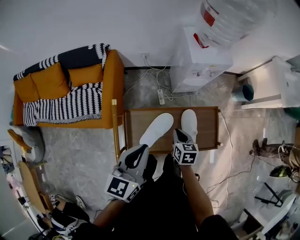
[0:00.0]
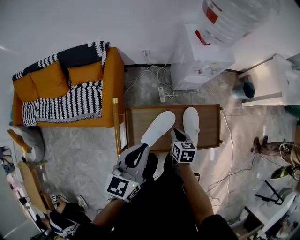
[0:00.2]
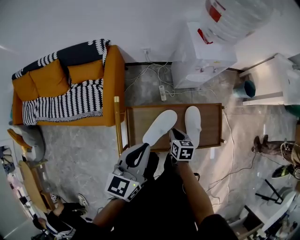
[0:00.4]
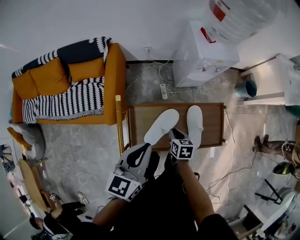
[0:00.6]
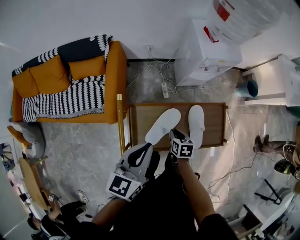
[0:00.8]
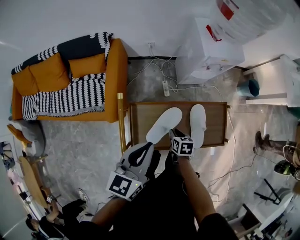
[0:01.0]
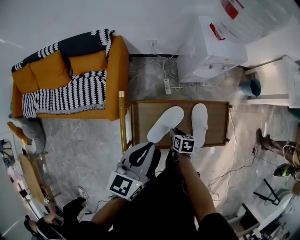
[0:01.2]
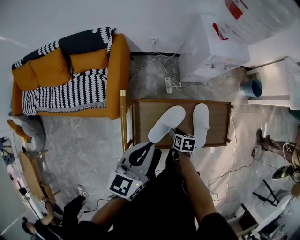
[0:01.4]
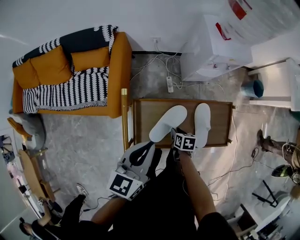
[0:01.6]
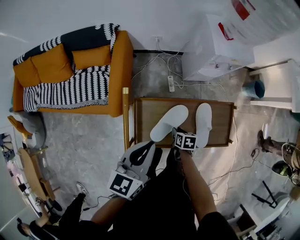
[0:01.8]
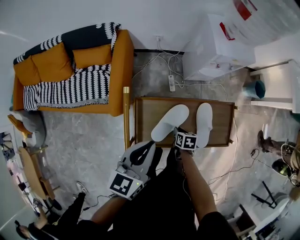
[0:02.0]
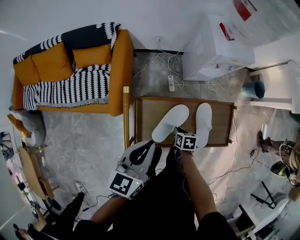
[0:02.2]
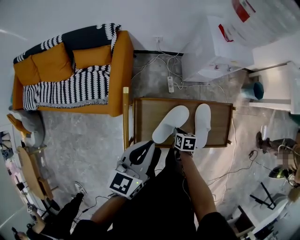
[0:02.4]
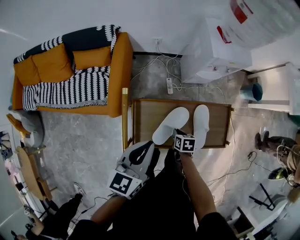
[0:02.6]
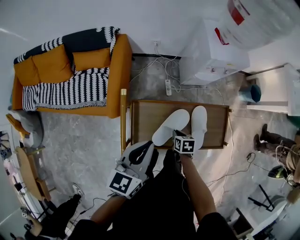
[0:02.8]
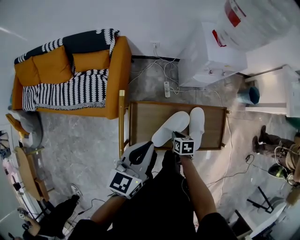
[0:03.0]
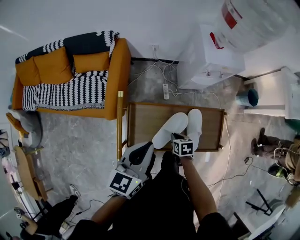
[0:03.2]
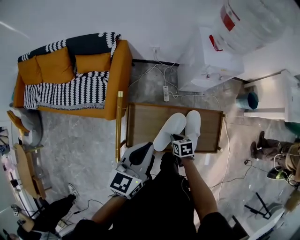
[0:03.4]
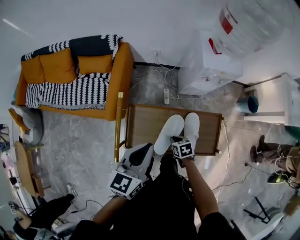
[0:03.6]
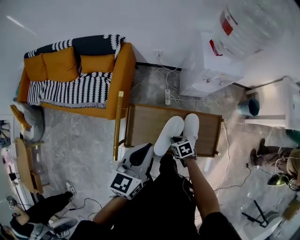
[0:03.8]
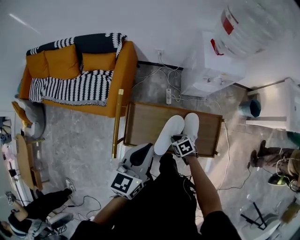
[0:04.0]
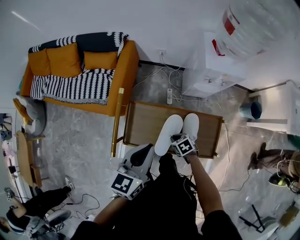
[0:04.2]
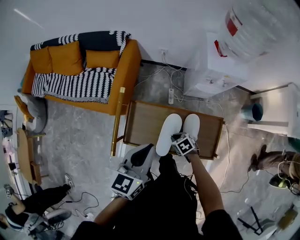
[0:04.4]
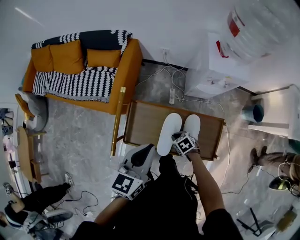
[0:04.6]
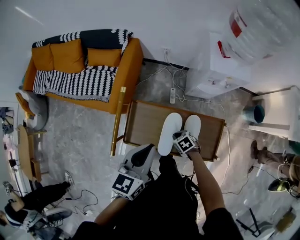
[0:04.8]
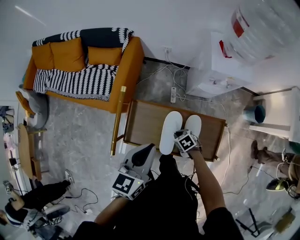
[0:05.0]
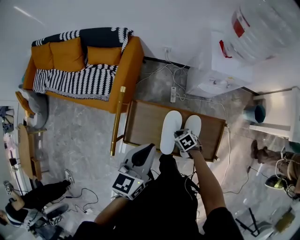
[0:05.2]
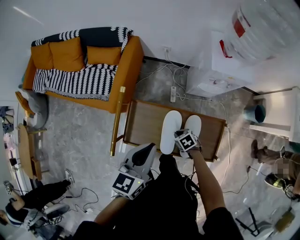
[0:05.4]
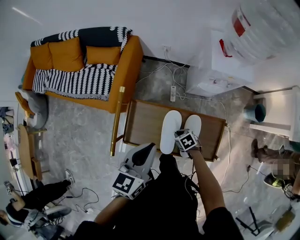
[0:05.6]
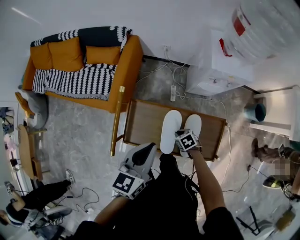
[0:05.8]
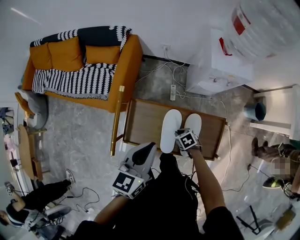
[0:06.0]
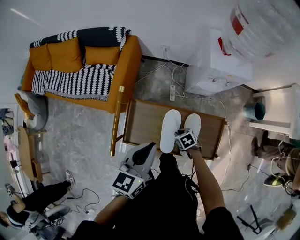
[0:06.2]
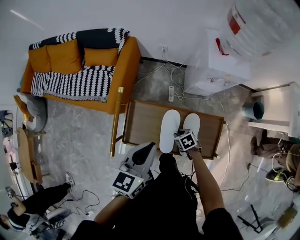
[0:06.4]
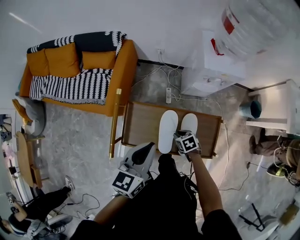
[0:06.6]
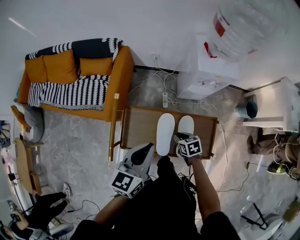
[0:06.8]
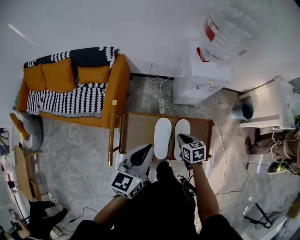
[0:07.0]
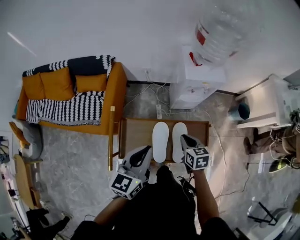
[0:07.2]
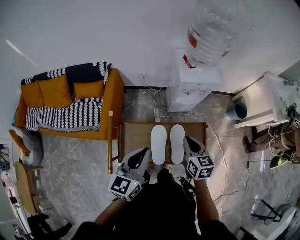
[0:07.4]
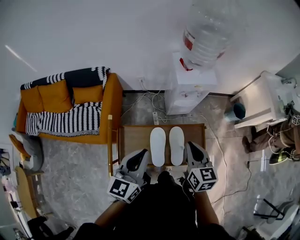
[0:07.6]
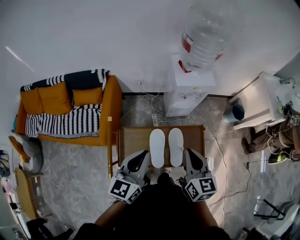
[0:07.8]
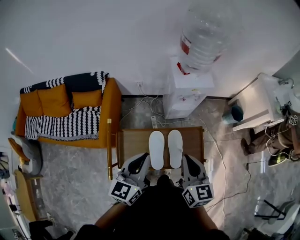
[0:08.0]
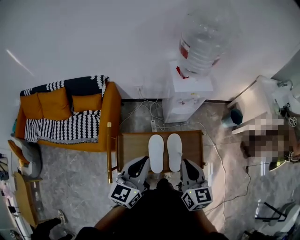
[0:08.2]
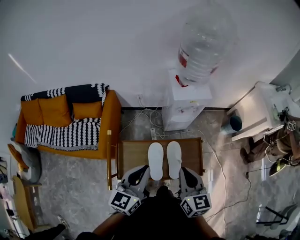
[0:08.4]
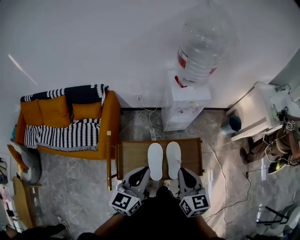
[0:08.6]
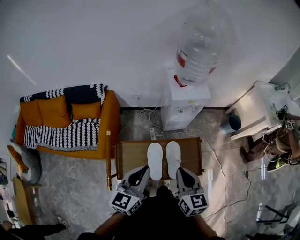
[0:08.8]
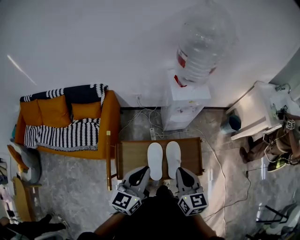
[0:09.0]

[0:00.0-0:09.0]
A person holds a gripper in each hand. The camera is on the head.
0:00.0 to 0:01.6: The right gripper is displaced downward by about 15 cm, swivels some 20 degrees, and opens its fingers, while the left gripper ends up some 5 cm from where it was.
0:01.6 to 0:03.0: The grippers move only a little.
0:03.0 to 0:04.4: The right gripper changes its angle by approximately 40 degrees. Meanwhile the left gripper travels to the right by roughly 5 cm.
0:04.4 to 0:06.0: The grippers stay close to where they were, moving slightly.
0:06.0 to 0:07.6: The left gripper shifts approximately 10 cm upward; the right gripper heads upward, covering some 35 cm, and tips its fingers upward by roughly 40 degrees.
0:07.6 to 0:09.0: The right gripper moves backward, about 5 cm.

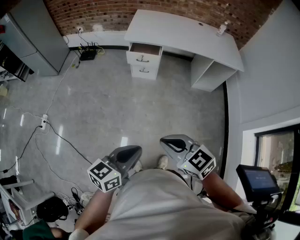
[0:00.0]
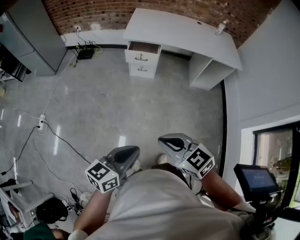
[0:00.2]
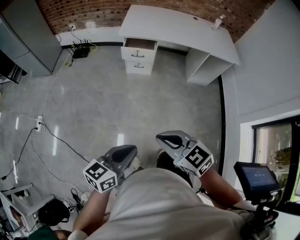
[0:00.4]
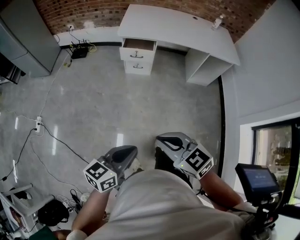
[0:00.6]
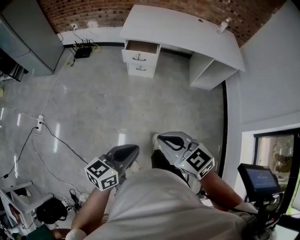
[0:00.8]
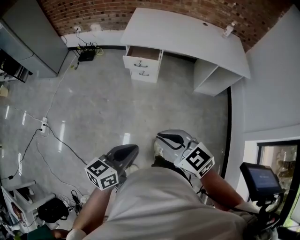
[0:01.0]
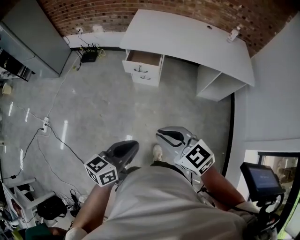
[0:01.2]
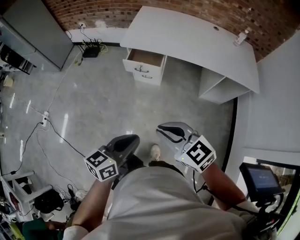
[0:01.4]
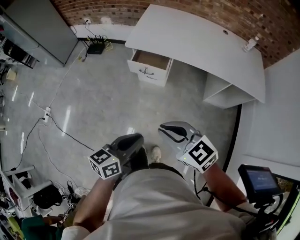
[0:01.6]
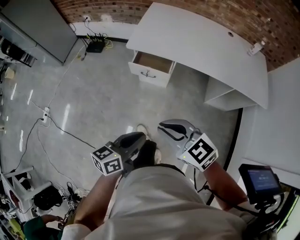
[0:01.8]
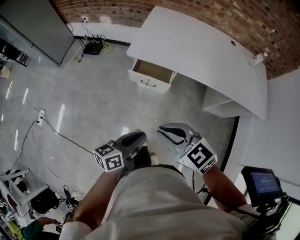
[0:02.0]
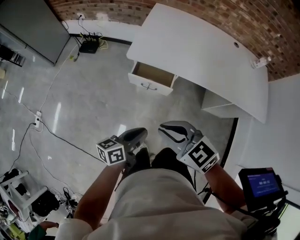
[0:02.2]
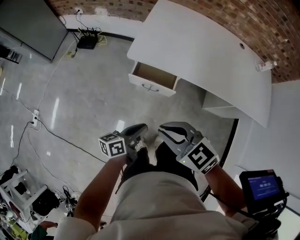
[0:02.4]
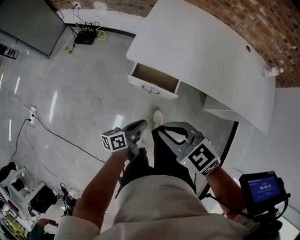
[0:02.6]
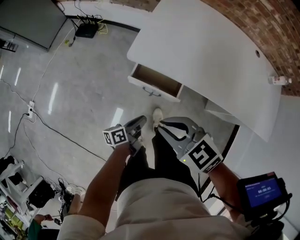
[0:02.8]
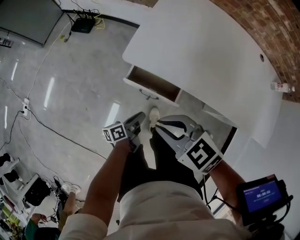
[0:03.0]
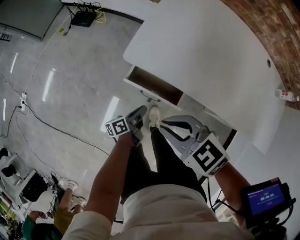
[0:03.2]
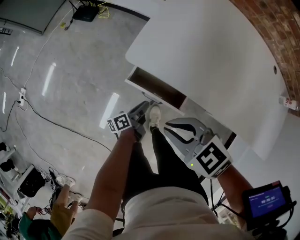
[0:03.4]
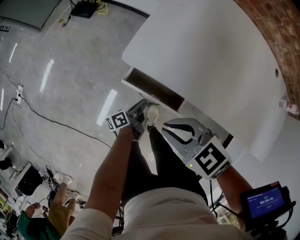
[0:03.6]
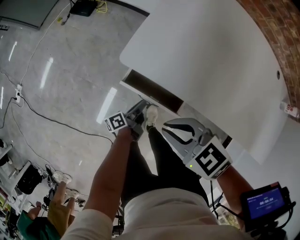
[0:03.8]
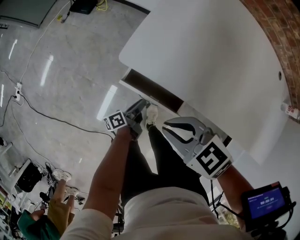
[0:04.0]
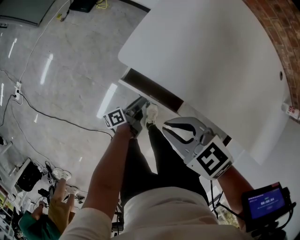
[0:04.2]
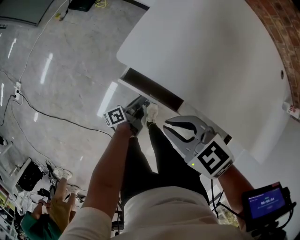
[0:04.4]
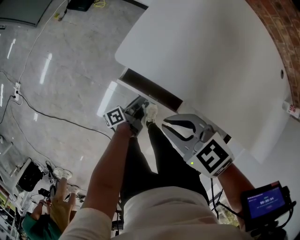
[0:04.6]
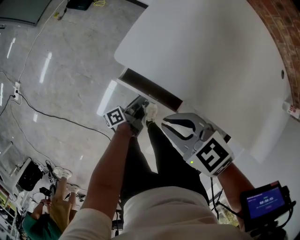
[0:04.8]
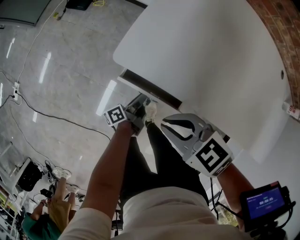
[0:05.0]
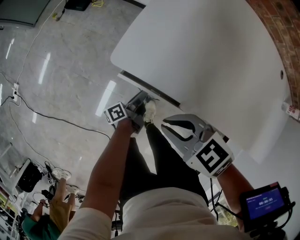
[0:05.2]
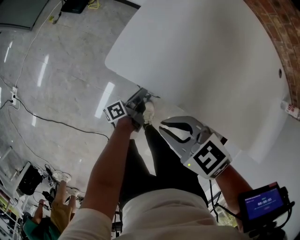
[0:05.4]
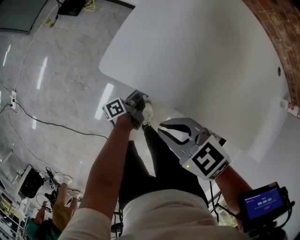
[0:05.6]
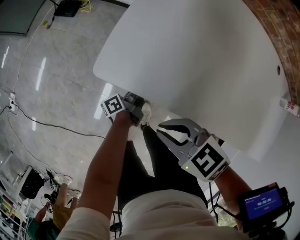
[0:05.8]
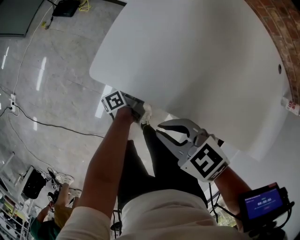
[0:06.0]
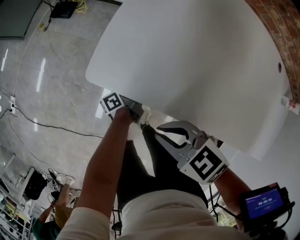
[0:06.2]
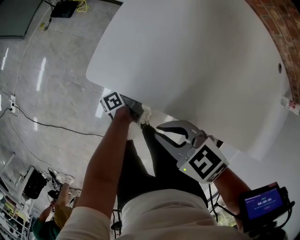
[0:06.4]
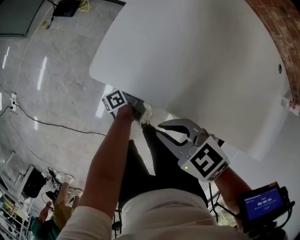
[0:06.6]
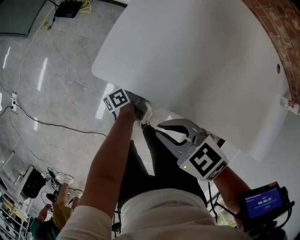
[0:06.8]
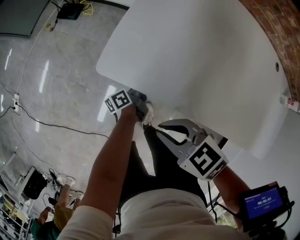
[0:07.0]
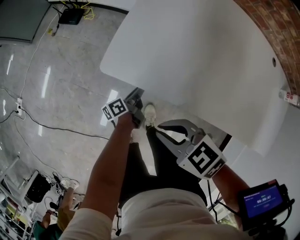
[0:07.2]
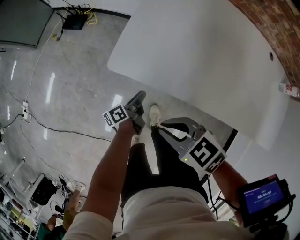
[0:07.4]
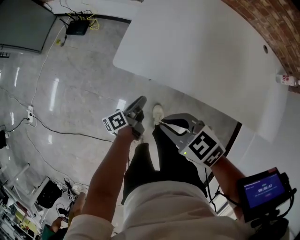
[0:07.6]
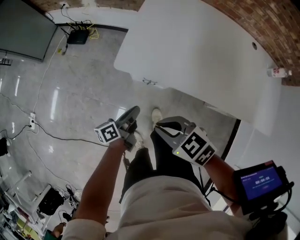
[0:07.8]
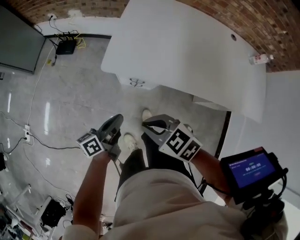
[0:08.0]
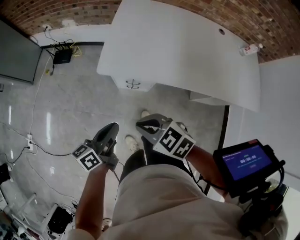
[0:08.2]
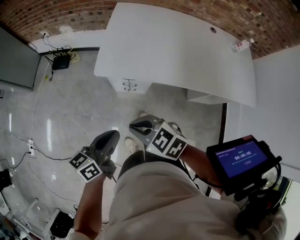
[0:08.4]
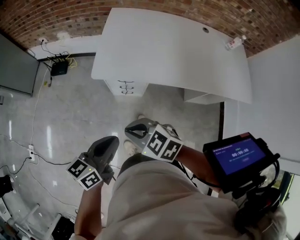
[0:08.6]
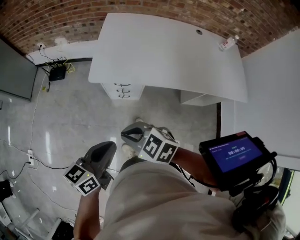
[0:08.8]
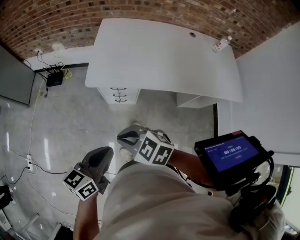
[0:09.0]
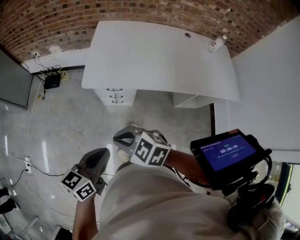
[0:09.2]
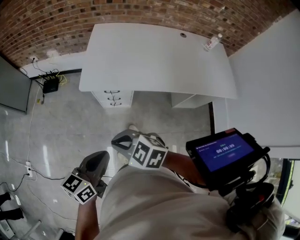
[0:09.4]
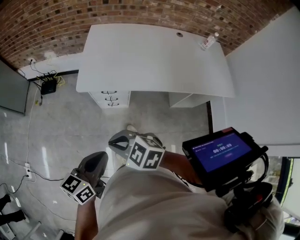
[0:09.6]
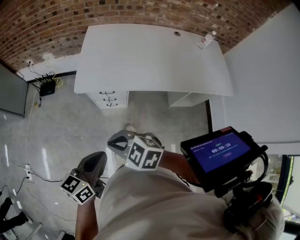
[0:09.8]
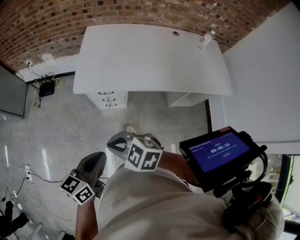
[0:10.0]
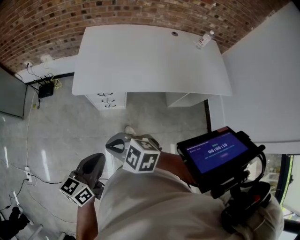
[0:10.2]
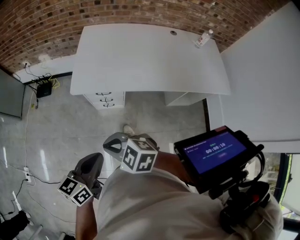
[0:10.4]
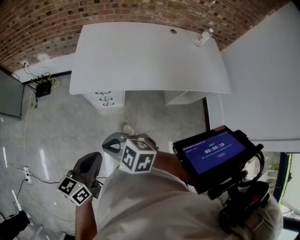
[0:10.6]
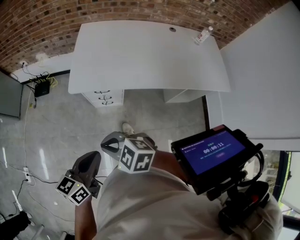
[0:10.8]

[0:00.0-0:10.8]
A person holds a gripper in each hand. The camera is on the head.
0:00.0 to 0:01.6: The two grippers go some 30 cm forward.
0:01.6 to 0:03.0: Both grippers are carried forward, some 50 cm. The left gripper is displaced downward by roughly 40 cm, and twists roughly 50 degrees counterclockwise, seen from behind. Meanwhile the right gripper is displaced downward by some 20 cm, and rotates approximately 20 degrees.
0:03.0 to 0:04.6: The grippers move only a little.
0:04.6 to 0:06.2: The left gripper shifts approximately 10 cm forward and to the right.
0:06.2 to 0:07.8: The left gripper is displaced upward, backward and to the left by some 25 cm, and turns by about 20 degrees. Meanwhile the right gripper moves backward and upward, some 10 cm.
0:07.8 to 0:09.2: The left gripper shifts approximately 30 cm upward and backward, and rotates around the line of its fingers by some 40 degrees, clockwise from behind; the right gripper heads backward and upward, covering roughly 15 cm.
0:09.2 to 0:10.8: The grippers stay close to where they were, moving slightly.

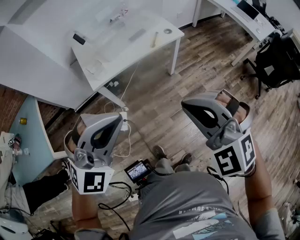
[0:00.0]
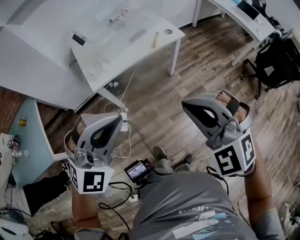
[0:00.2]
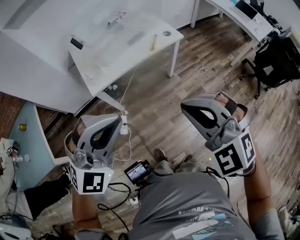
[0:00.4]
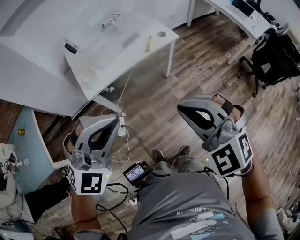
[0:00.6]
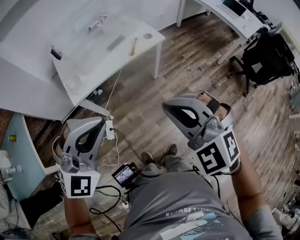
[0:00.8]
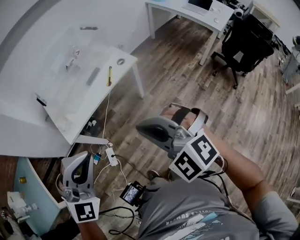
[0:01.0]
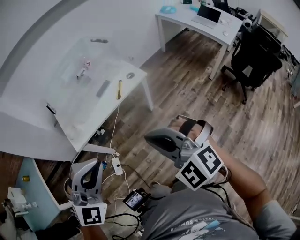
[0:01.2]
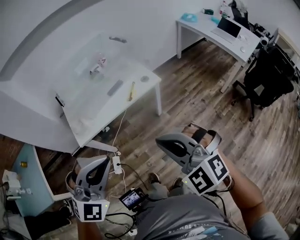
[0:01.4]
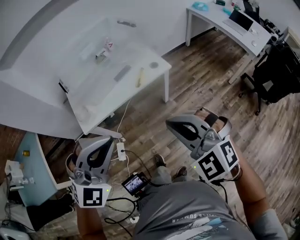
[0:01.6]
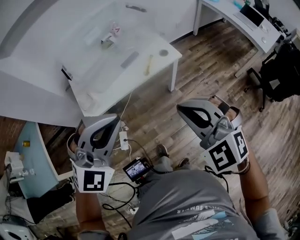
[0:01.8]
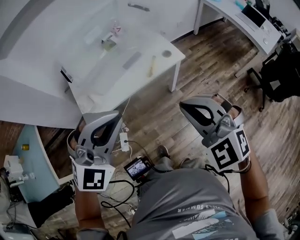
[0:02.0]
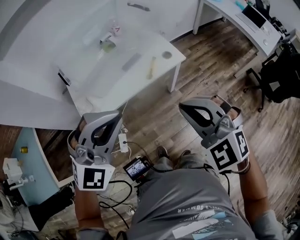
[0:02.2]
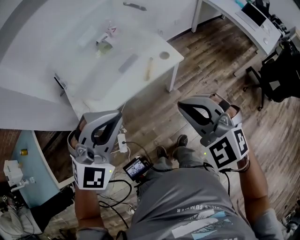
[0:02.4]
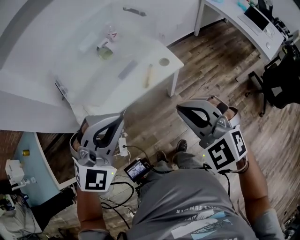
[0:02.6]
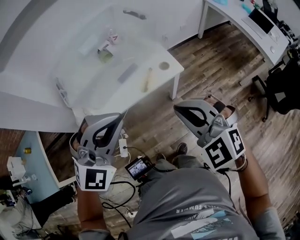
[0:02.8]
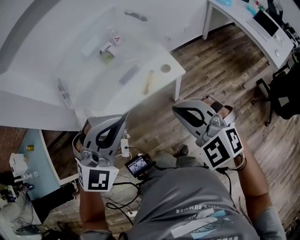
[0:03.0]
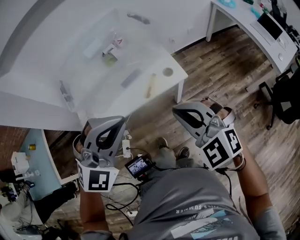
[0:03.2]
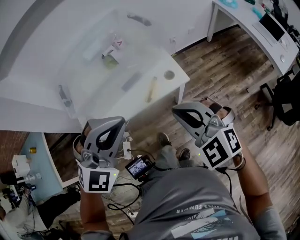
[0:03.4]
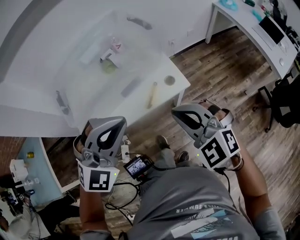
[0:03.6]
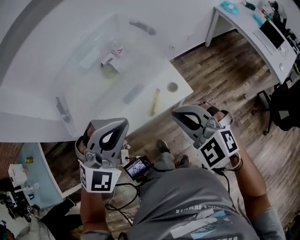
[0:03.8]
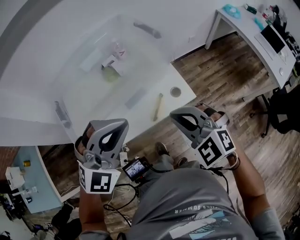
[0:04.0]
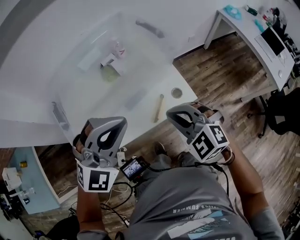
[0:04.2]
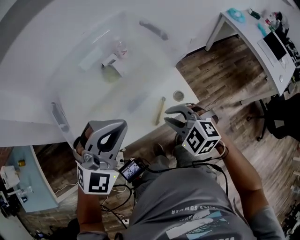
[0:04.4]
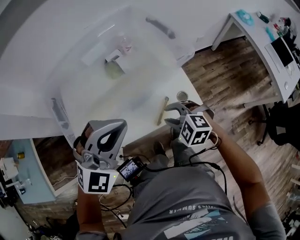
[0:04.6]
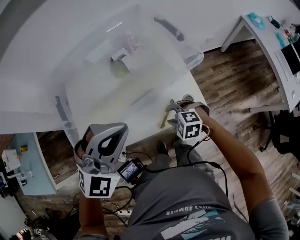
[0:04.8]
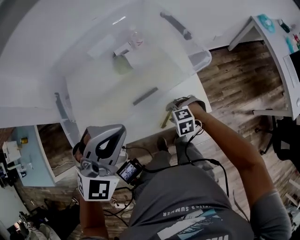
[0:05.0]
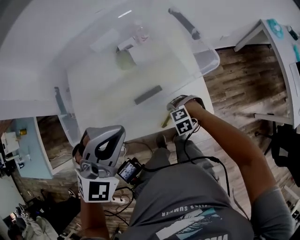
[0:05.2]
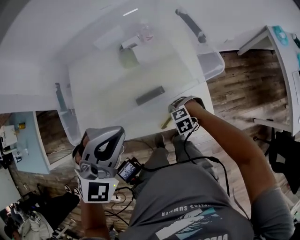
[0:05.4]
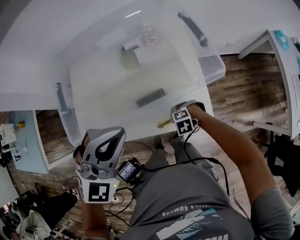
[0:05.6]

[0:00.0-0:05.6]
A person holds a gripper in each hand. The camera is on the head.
0:00.0 to 0:01.4: The left gripper travels to the right and forward by roughly 15 cm; the right gripper goes approximately 15 cm forward and to the right.
0:01.4 to 0:02.8: The grippers both shift forward by approximately 20 cm.
0:02.8 to 0:04.2: The left gripper is displaced forward by some 20 cm; the right gripper shifts roughly 20 cm forward and downward.
0:04.2 to 0:05.6: The right gripper shifts about 30 cm downward, tilts its fingers some 40 degrees downward, and opens; the left gripper shifts by approximately 10 cm, and rotates approximately 20 degrees.
